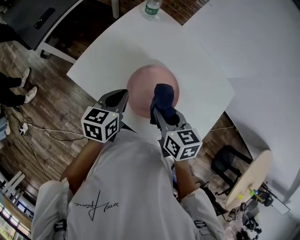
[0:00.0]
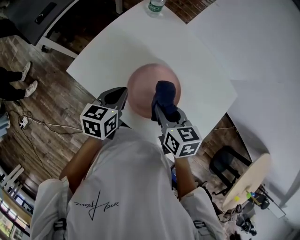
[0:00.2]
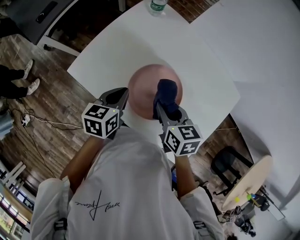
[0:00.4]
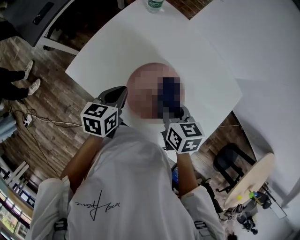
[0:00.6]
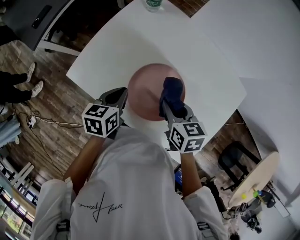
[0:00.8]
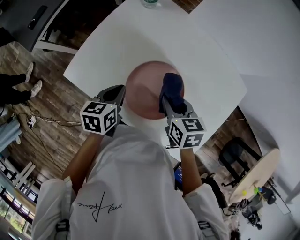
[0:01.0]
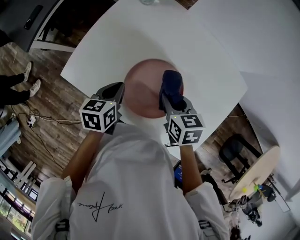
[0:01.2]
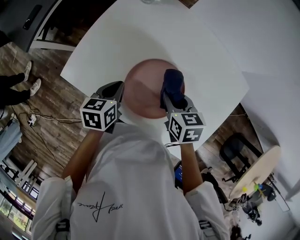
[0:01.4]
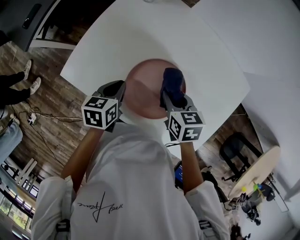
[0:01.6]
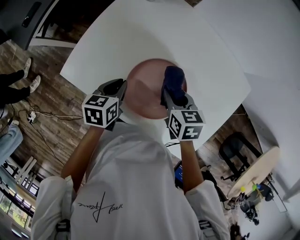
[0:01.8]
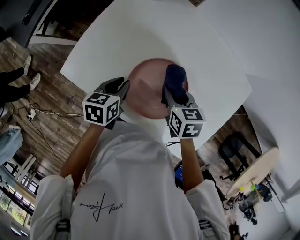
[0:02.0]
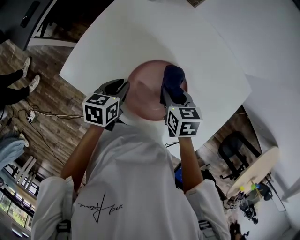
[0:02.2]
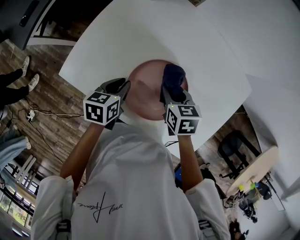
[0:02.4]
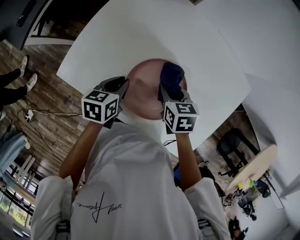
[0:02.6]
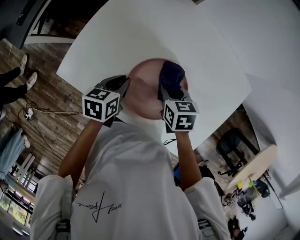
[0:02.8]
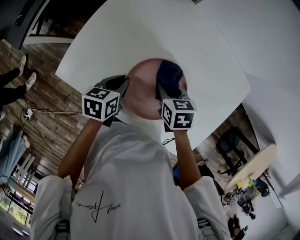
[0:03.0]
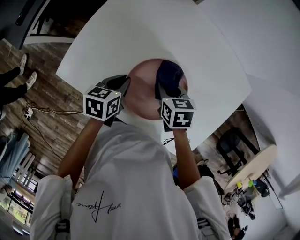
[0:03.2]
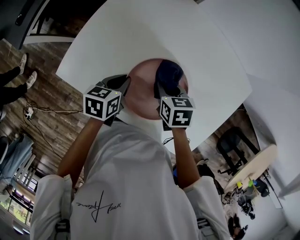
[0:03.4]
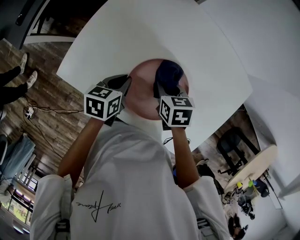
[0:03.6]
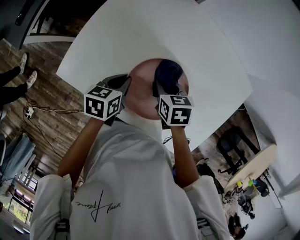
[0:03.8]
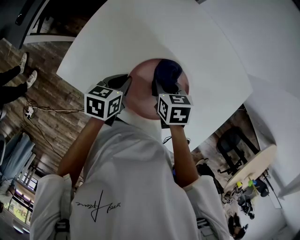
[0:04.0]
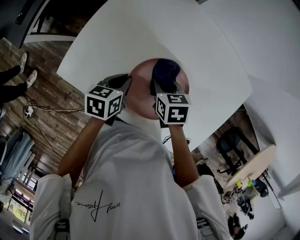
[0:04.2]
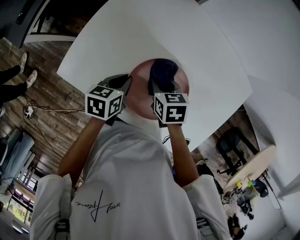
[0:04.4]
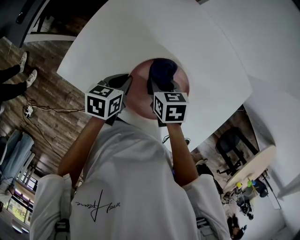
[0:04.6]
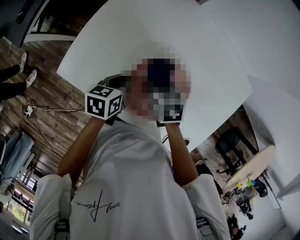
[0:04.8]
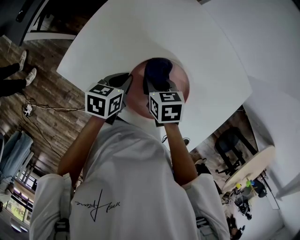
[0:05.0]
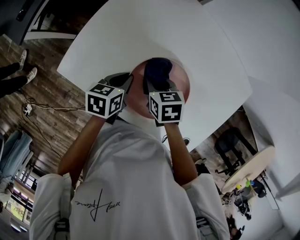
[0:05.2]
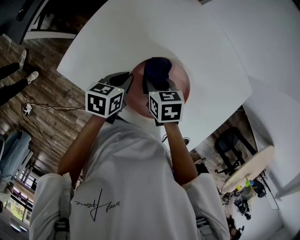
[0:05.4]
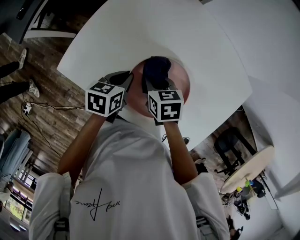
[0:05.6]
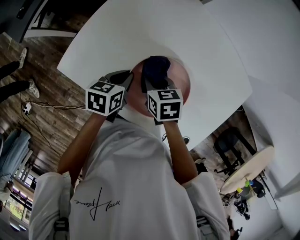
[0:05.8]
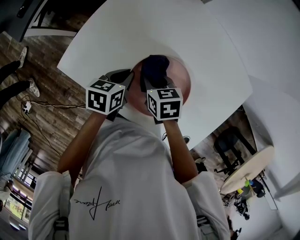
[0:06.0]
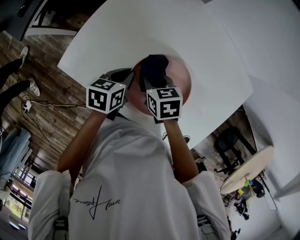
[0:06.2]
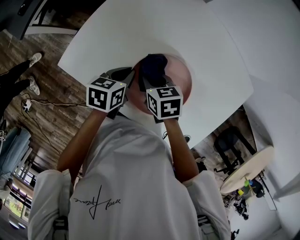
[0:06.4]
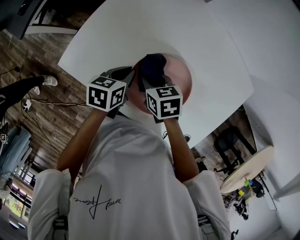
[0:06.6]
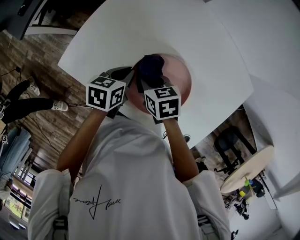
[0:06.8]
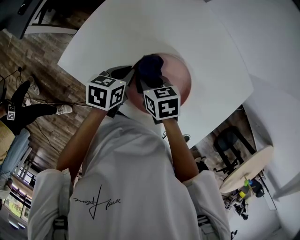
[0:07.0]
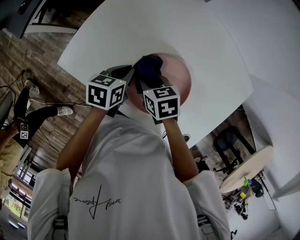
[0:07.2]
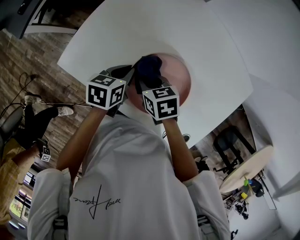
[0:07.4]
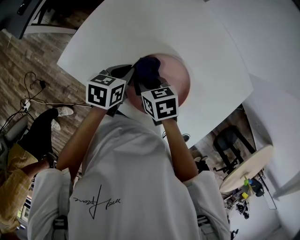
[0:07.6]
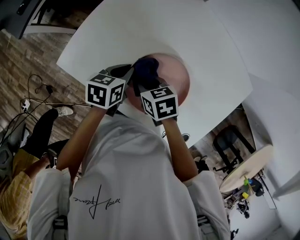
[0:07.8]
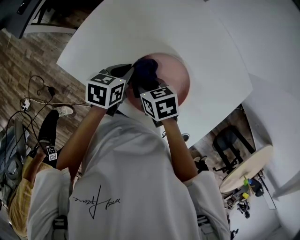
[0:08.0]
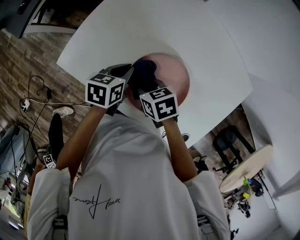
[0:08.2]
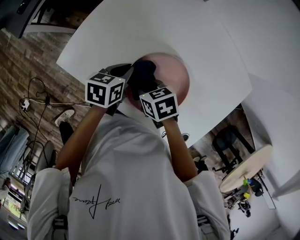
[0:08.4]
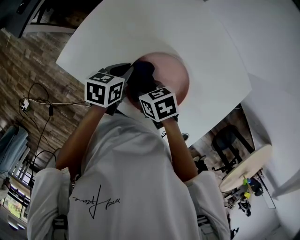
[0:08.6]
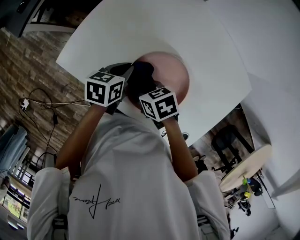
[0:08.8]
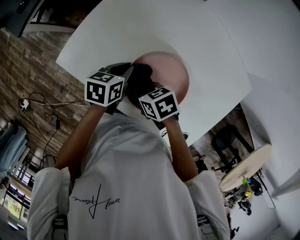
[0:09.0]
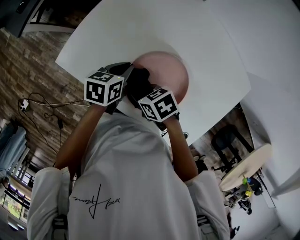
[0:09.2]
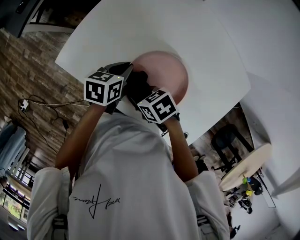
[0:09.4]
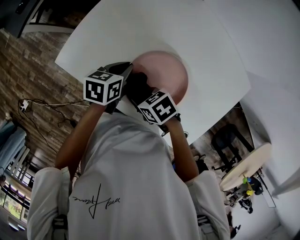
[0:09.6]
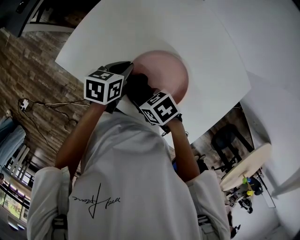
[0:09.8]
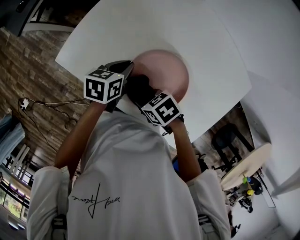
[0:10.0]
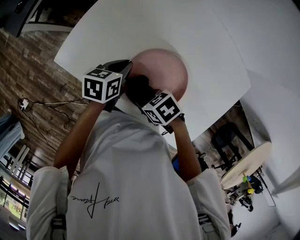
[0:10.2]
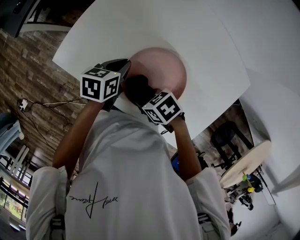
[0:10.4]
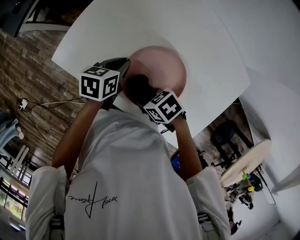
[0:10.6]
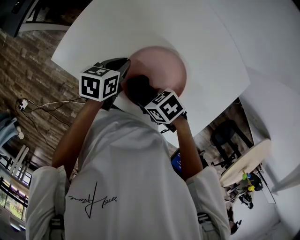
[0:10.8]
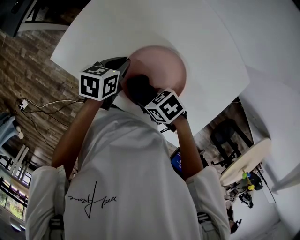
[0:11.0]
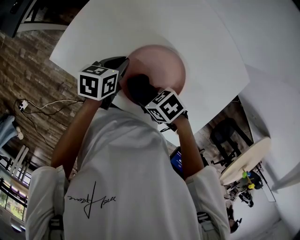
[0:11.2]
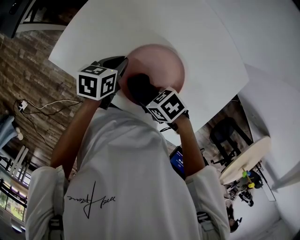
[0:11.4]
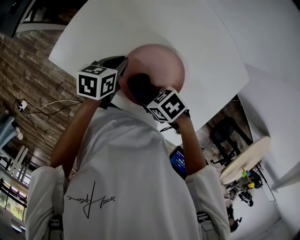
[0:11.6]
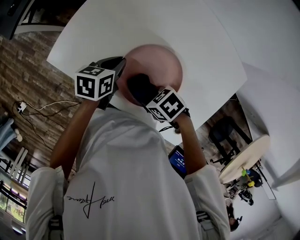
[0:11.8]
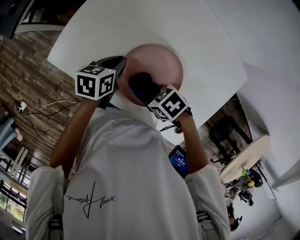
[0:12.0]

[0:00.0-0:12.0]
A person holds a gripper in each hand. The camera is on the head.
0:00.0 to 0:01.6: The right gripper heads downward, forward and to the right, covering some 10 cm; the left gripper moves downward, about 10 cm.
0:01.6 to 0:03.0: The right gripper moves downward, roughly 5 cm.
0:03.0 to 0:04.4: There are only small adjustments of the grippers.
0:04.4 to 0:06.0: The grippers stay close to where they were, moving slightly.
0:06.0 to 0:07.6: The grippers make only small movements.
0:07.6 to 0:09.0: The right gripper shifts by roughly 5 cm.
0:09.0 to 0:10.4: The right gripper shifts by roughly 5 cm.
0:10.4 to 0:12.0: The grippers make only small movements.

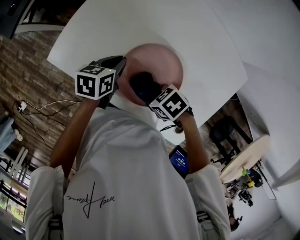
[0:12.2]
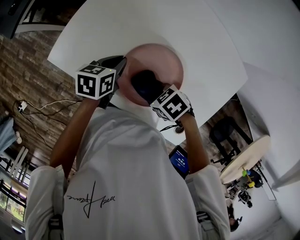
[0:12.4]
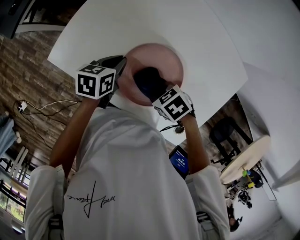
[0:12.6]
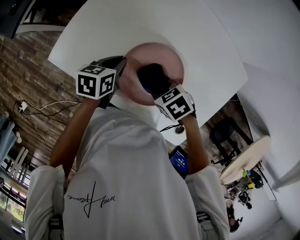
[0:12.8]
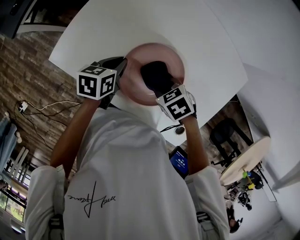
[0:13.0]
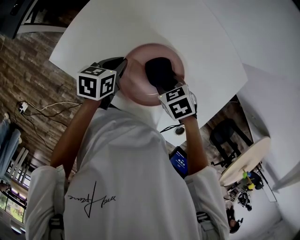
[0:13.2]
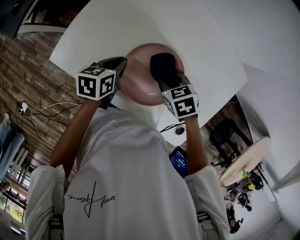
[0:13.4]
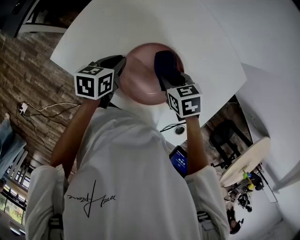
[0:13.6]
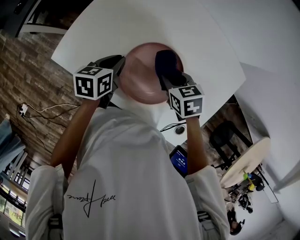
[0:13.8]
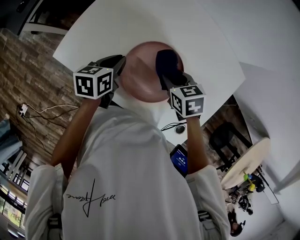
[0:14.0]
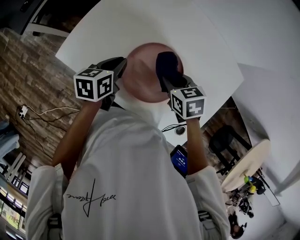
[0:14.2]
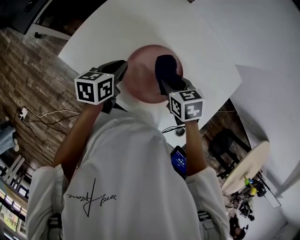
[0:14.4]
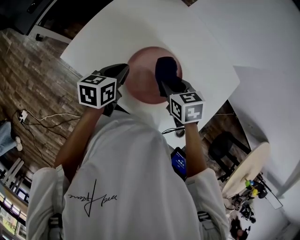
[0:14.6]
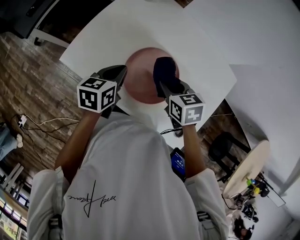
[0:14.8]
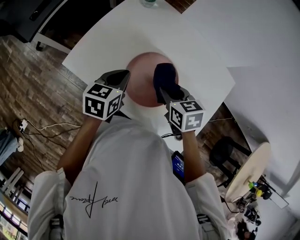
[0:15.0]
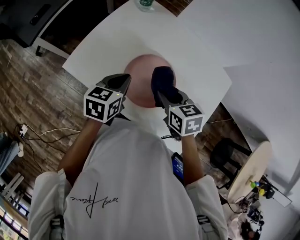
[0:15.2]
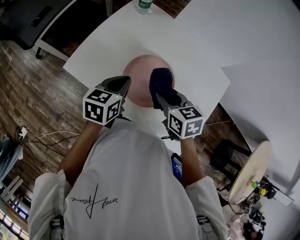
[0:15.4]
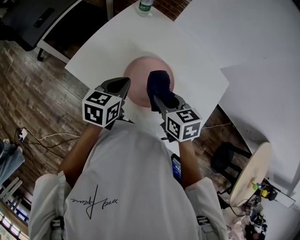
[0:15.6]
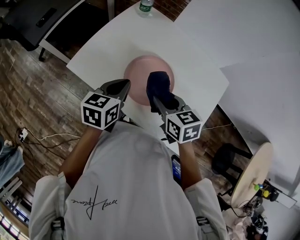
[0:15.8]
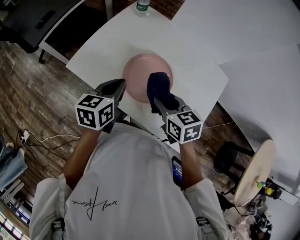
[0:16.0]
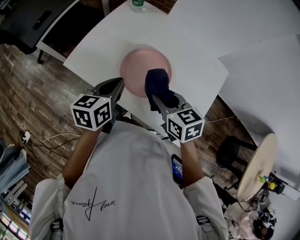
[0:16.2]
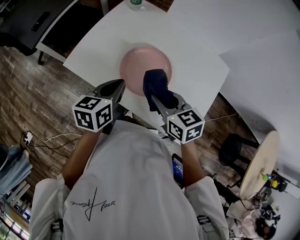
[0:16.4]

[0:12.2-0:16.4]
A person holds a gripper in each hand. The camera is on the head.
0:12.2 to 0:13.6: The right gripper changes place by some 10 cm, and swivels approximately 40 degrees.
0:13.6 to 0:15.0: The grippers both shift upward by some 10 cm.
0:15.0 to 0:16.4: The two grippers go approximately 10 cm backward.

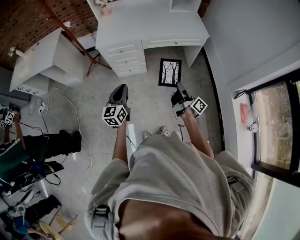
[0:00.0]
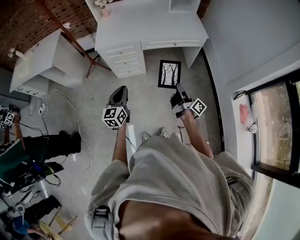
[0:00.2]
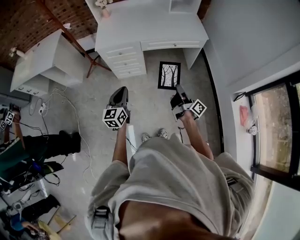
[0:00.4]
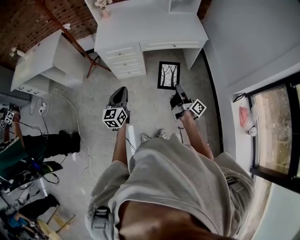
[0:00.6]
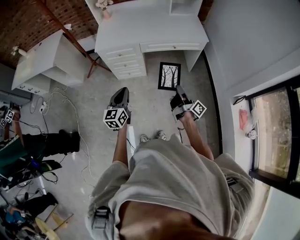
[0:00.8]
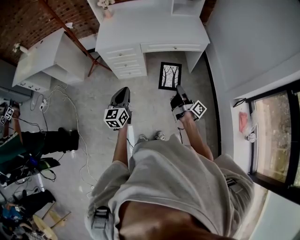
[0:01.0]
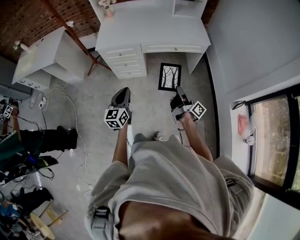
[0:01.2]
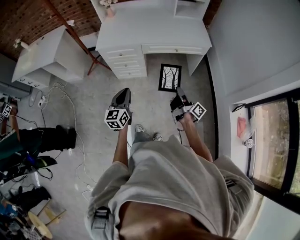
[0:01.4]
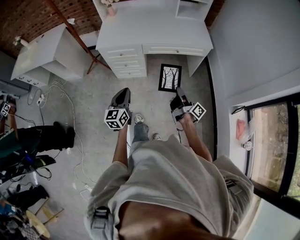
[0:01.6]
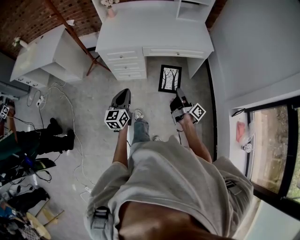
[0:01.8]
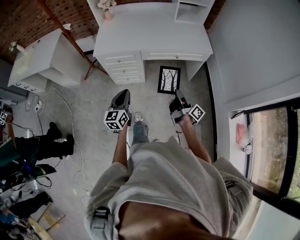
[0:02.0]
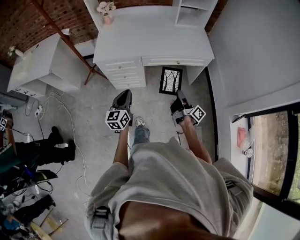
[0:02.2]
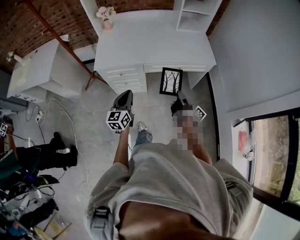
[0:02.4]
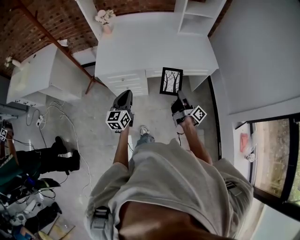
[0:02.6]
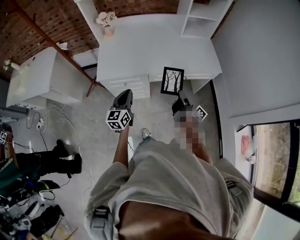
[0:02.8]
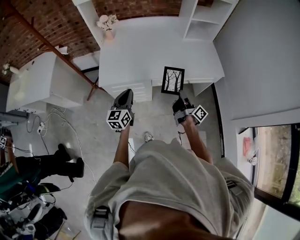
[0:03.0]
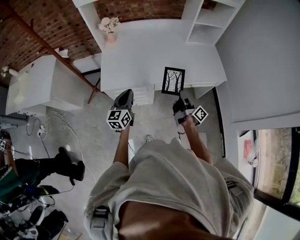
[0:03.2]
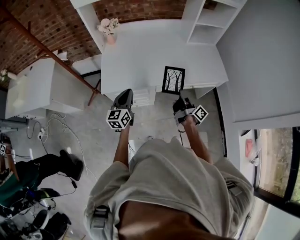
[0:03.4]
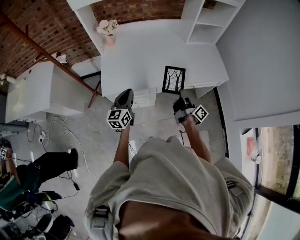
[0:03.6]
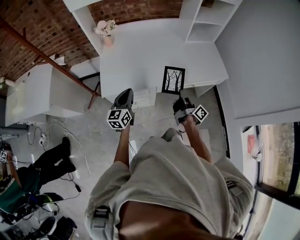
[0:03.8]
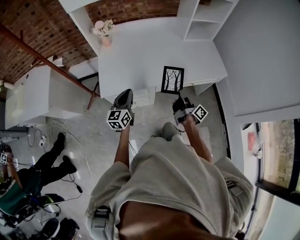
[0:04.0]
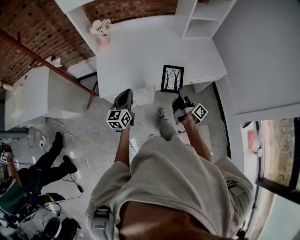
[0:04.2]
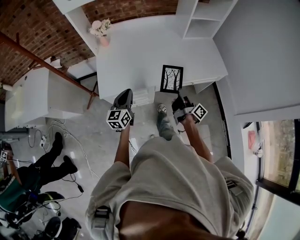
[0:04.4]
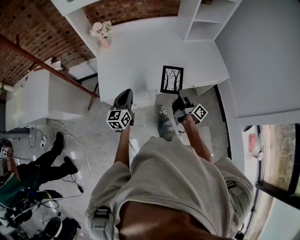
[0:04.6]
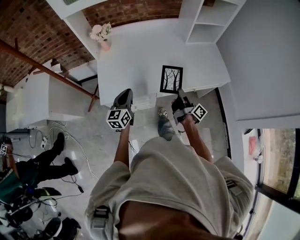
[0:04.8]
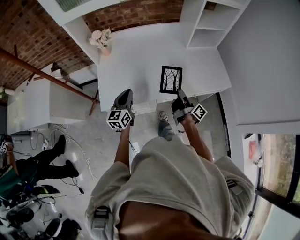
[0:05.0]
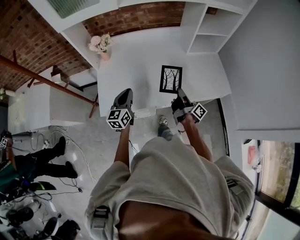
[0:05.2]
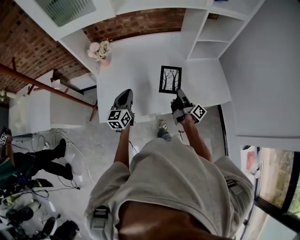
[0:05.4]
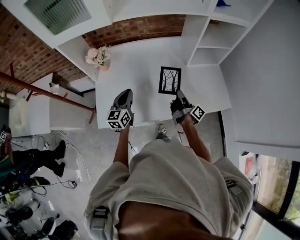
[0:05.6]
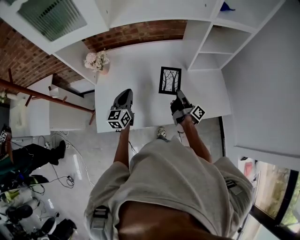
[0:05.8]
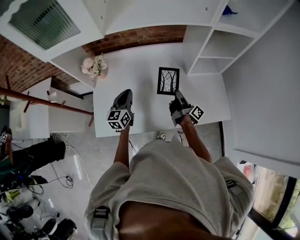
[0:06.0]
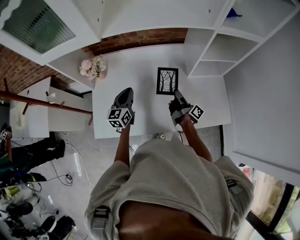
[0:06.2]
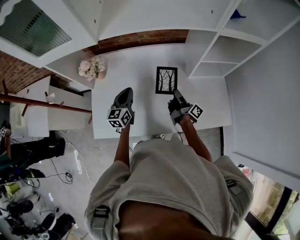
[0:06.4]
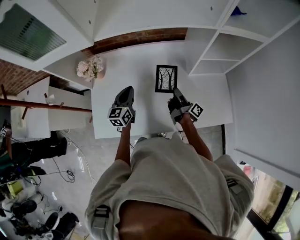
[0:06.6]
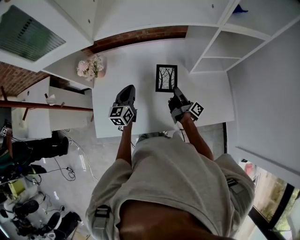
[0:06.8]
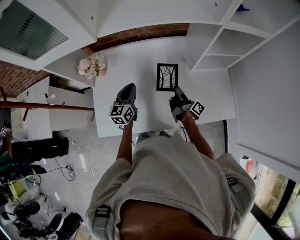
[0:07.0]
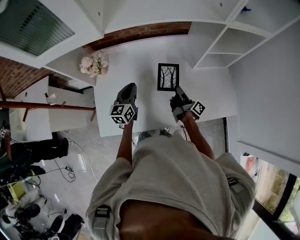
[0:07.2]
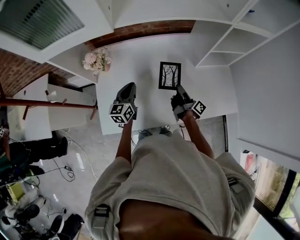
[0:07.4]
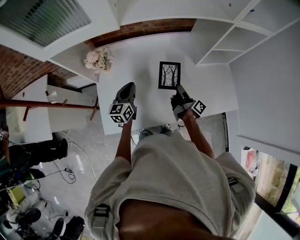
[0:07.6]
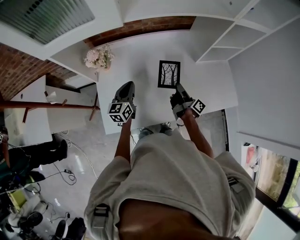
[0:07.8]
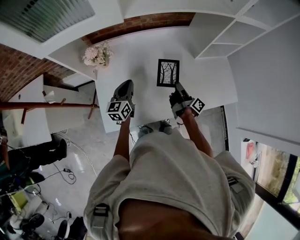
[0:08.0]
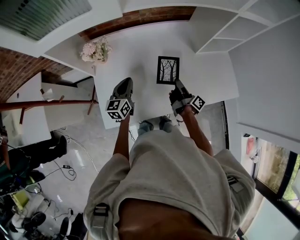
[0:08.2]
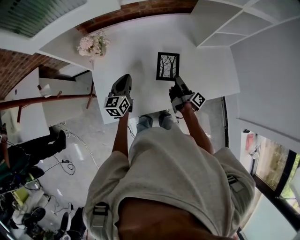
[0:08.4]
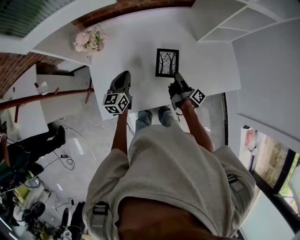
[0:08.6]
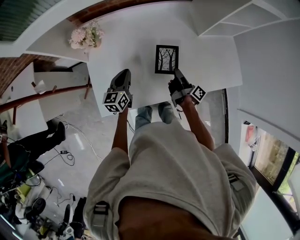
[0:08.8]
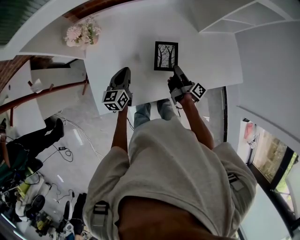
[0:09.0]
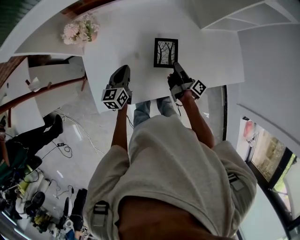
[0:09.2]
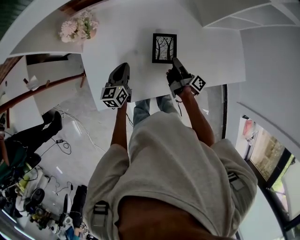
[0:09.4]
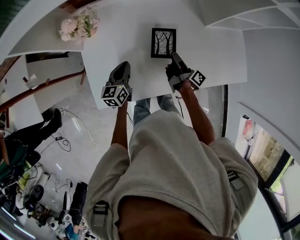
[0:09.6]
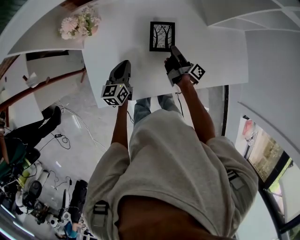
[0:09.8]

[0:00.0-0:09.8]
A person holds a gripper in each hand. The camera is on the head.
0:00.0 to 0:01.4: The left gripper moves about 5 cm.
0:01.4 to 0:02.8: The left gripper shifts by about 15 cm.
0:02.8 to 0:04.2: The left gripper shifts by some 30 cm.
0:04.2 to 0:05.6: The left gripper shifts by some 25 cm.
0:05.6 to 0:07.0: The left gripper changes place by approximately 15 cm.
0:07.0 to 0:08.4: The left gripper changes place by roughly 10 cm.
0:08.4 to 0:09.8: The left gripper heads downward, covering roughly 10 cm.
